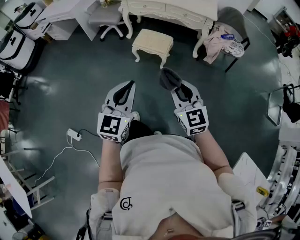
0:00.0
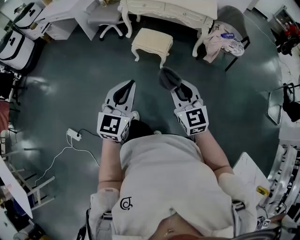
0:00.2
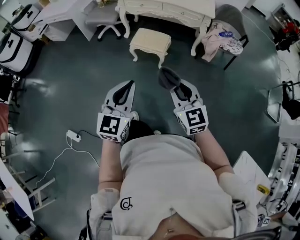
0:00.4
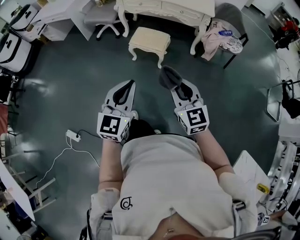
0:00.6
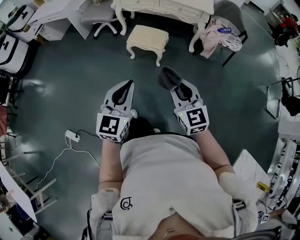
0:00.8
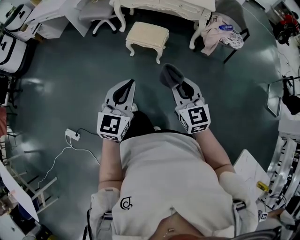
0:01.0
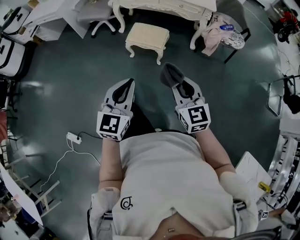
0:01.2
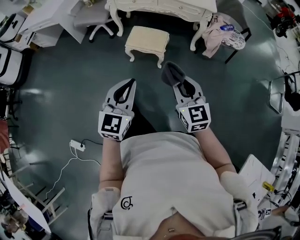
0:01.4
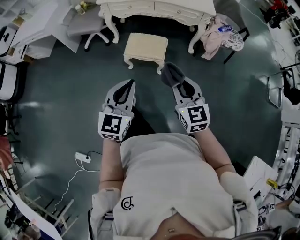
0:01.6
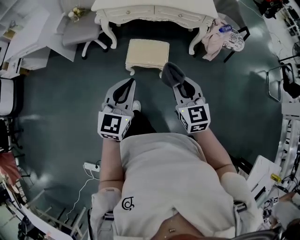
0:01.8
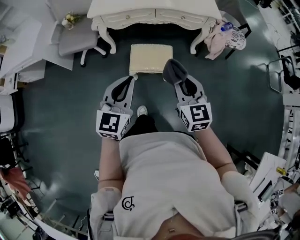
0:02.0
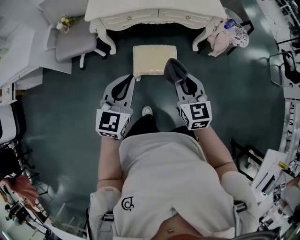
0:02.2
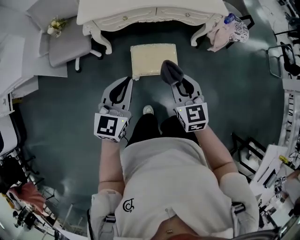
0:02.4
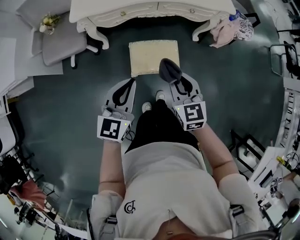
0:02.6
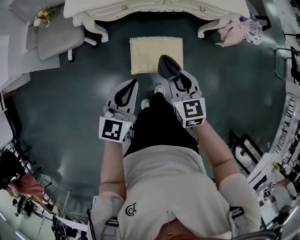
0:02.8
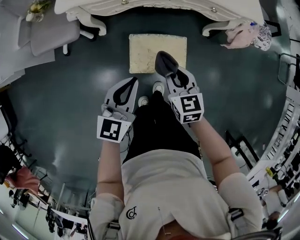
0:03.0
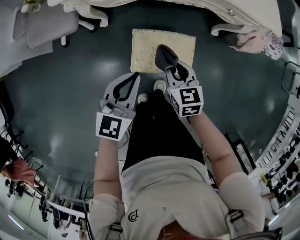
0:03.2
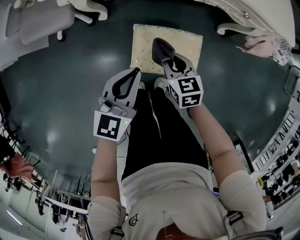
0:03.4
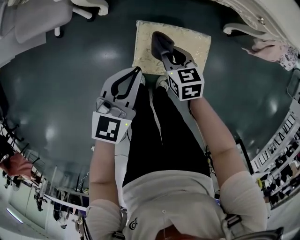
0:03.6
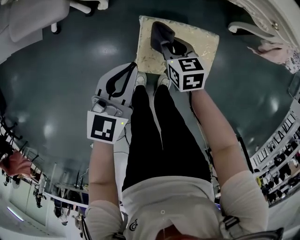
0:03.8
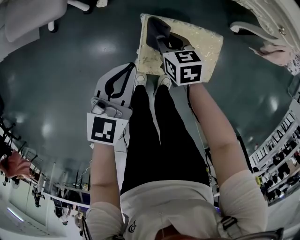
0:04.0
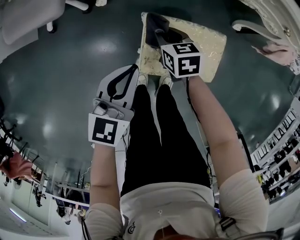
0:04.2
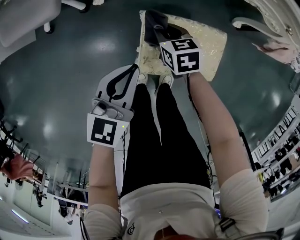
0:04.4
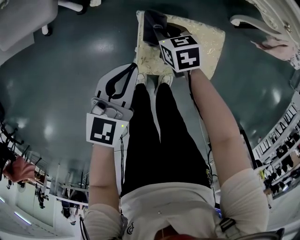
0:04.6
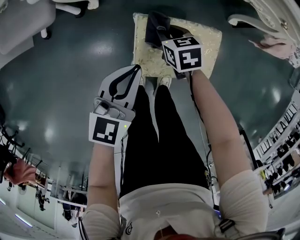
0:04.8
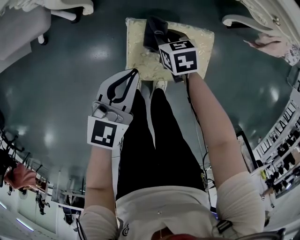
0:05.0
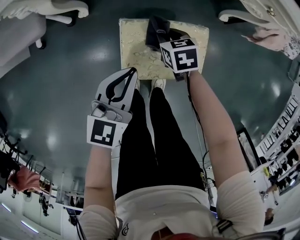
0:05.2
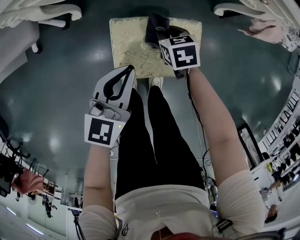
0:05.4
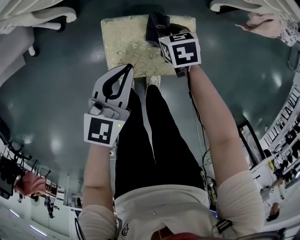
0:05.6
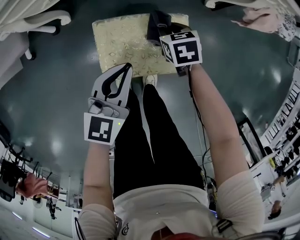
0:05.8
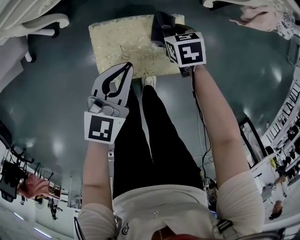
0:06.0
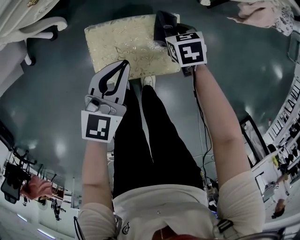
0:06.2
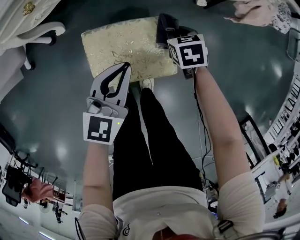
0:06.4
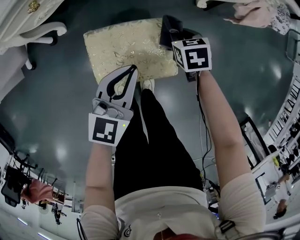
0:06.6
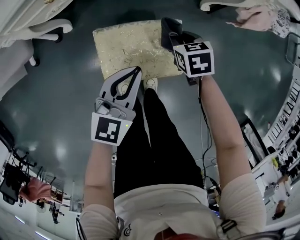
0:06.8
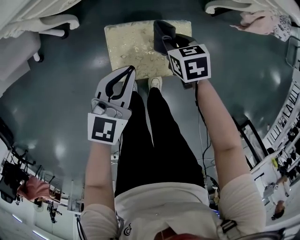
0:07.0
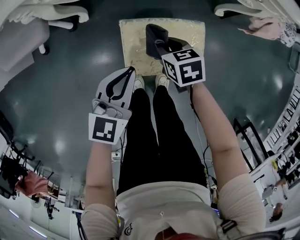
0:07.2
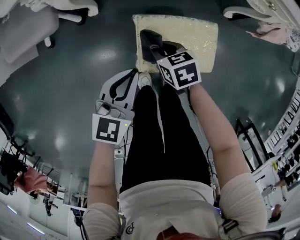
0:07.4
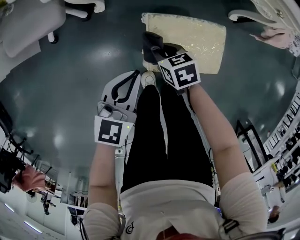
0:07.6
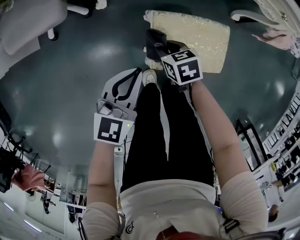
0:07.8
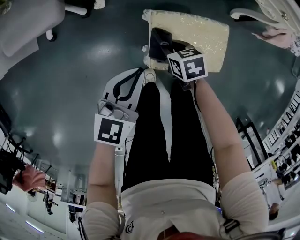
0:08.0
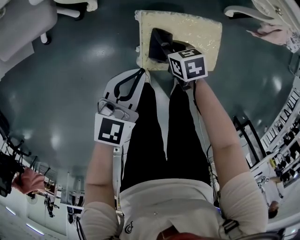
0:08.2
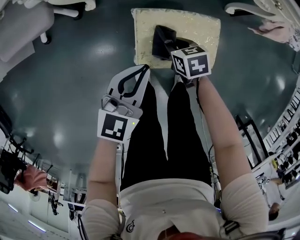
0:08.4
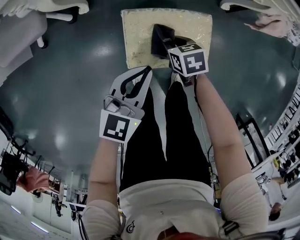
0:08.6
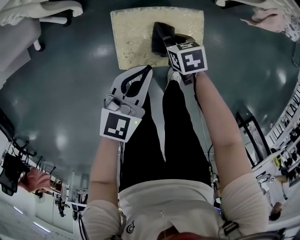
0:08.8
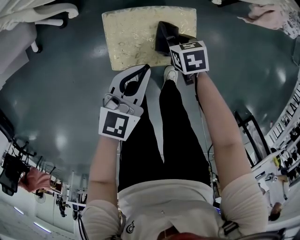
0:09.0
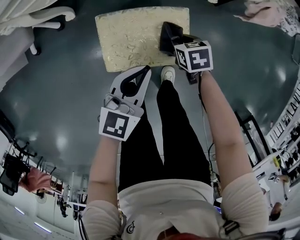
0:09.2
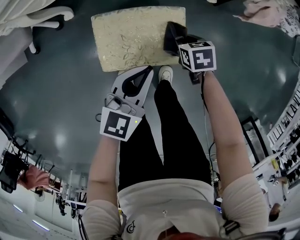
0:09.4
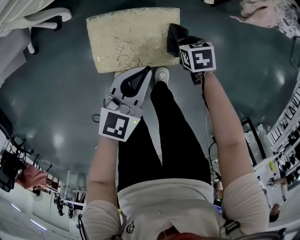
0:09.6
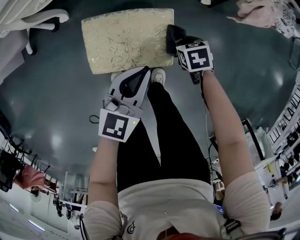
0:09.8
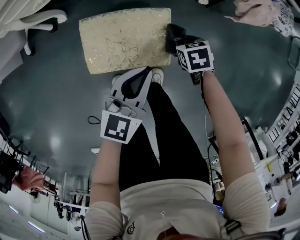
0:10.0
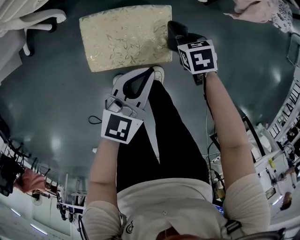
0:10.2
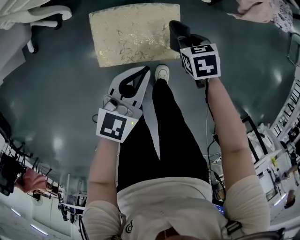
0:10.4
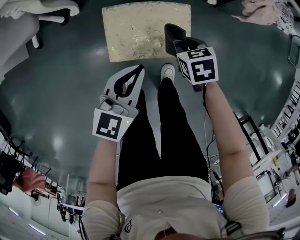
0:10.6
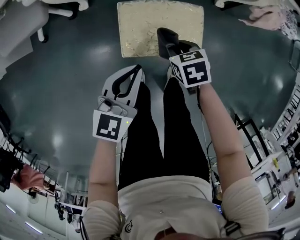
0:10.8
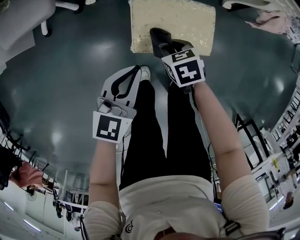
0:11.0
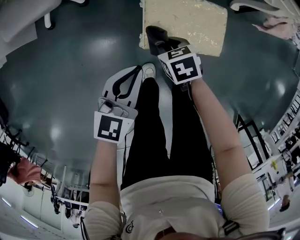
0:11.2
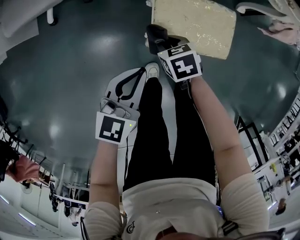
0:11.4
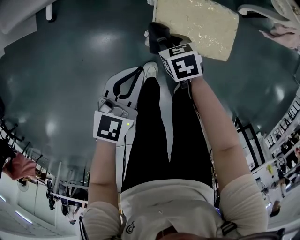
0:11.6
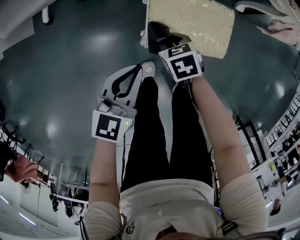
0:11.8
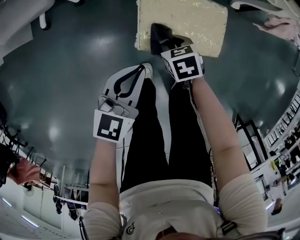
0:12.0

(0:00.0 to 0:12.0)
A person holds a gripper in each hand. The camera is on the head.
0:00.0 - 0:01.6: Both grippers move forward, approximately 20 cm.
0:01.6 - 0:03.0: The pair of grippers is taken forward and to the left, some 50 cm. The two grippers go roughly 20 cm downward. The right gripper changes its angle by about 30 degrees; the left gripper changes its angle by some 20 degrees.
0:03.0 - 0:04.4: The right gripper moves downward and forward, approximately 35 cm, and swivels approximately 20 degrees, while the left gripper moves downward, approximately 20 cm.
0:04.4 - 0:06.0: The two grippers go approximately 20 cm to the right.
0:06.0 - 0:07.6: Both grippers move to the left, some 20 cm.
0:07.6 - 0:09.0: The grippers both shift to the right by some 20 cm.
0:09.0 - 0:10.4: The right gripper ends up some 10 cm from where it was.
0:10.4 - 0:12.0: Both grippers travel together to the left, approximately 20 cm.

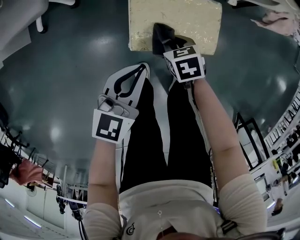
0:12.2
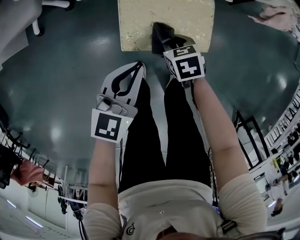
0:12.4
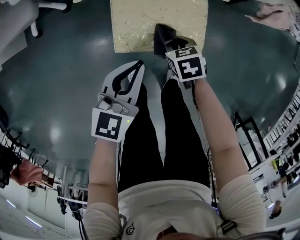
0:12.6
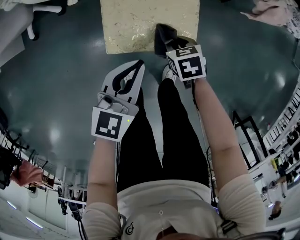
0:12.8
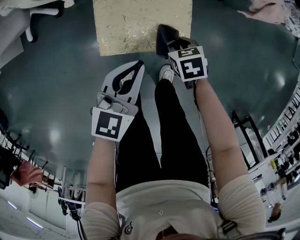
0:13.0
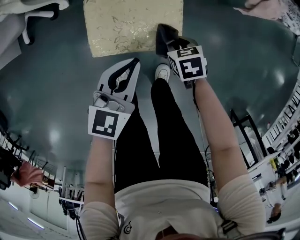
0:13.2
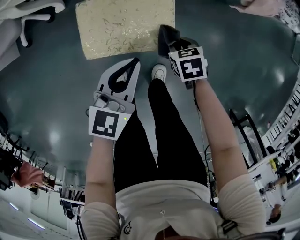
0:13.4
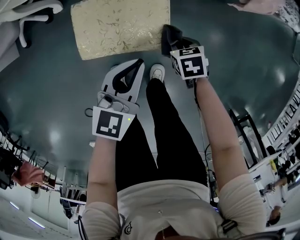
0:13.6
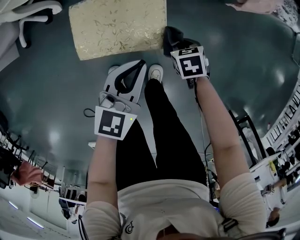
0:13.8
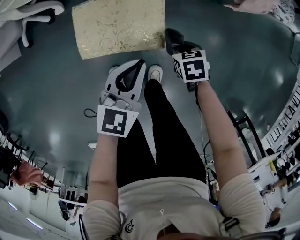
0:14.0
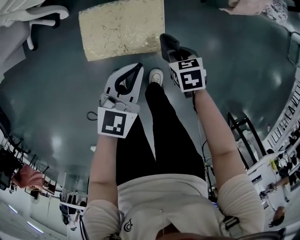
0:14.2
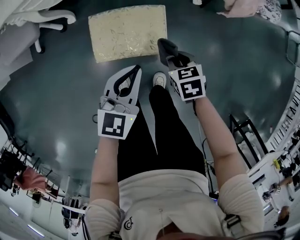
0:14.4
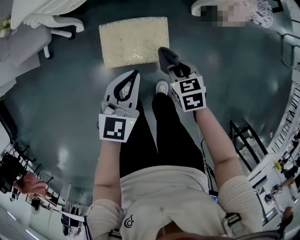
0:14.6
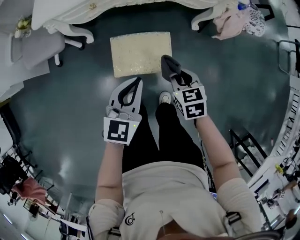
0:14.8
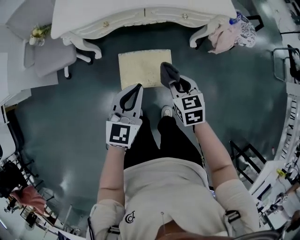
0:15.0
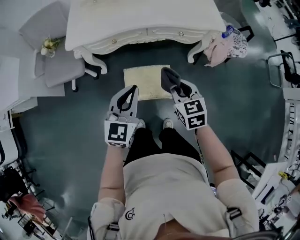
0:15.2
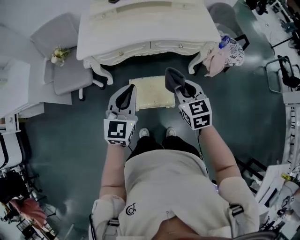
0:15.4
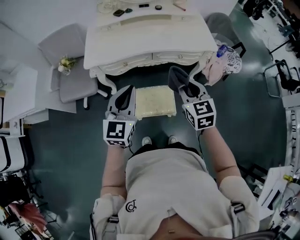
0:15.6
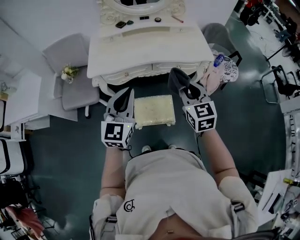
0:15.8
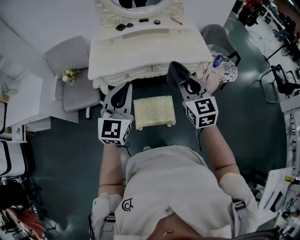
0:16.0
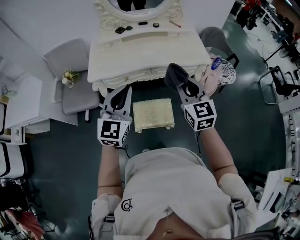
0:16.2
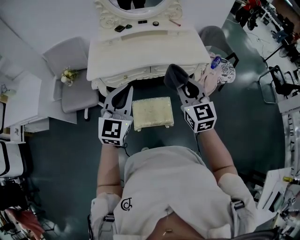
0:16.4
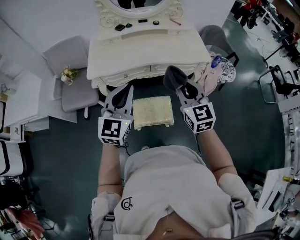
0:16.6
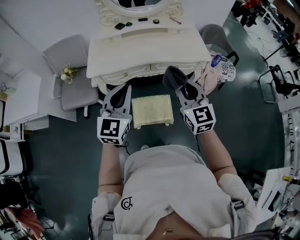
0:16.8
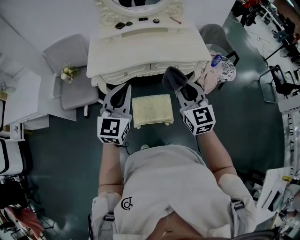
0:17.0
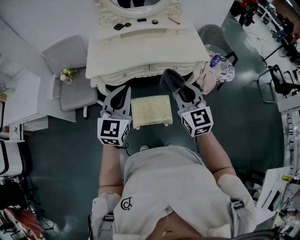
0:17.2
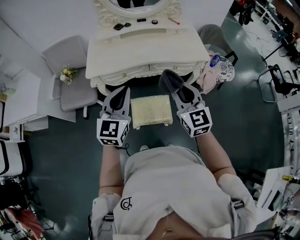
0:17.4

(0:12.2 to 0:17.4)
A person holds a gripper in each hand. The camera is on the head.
0:12.2 - 0:14.0: The left gripper ends up some 20 cm from where it was, while the right gripper changes place by roughly 25 cm.
0:14.0 - 0:15.6: Both grippers move upward, approximately 50 cm. The right gripper tilts its fingers some 50 degrees upward. The left gripper changes its angle by about 30 degrees.
0:15.6 - 0:17.4: The right gripper shifts approximately 10 cm upward. The left gripper goes approximately 5 cm upward.

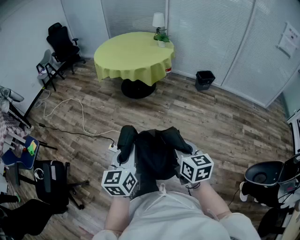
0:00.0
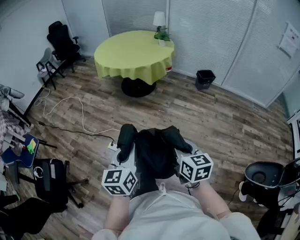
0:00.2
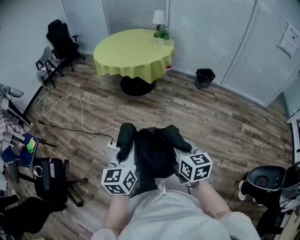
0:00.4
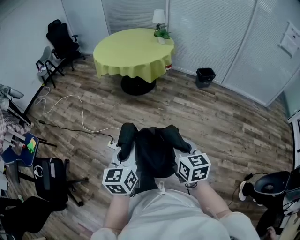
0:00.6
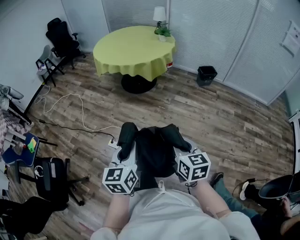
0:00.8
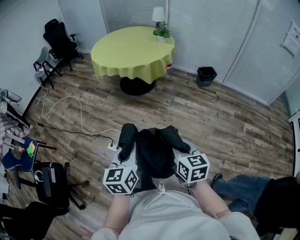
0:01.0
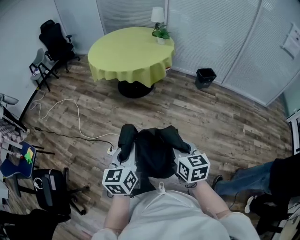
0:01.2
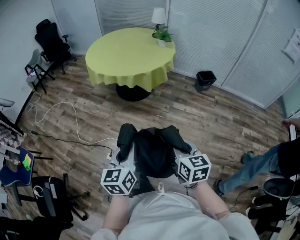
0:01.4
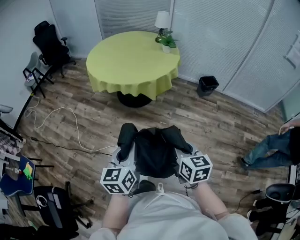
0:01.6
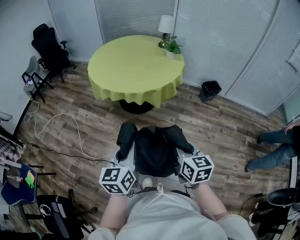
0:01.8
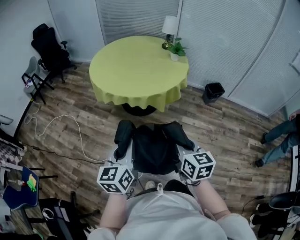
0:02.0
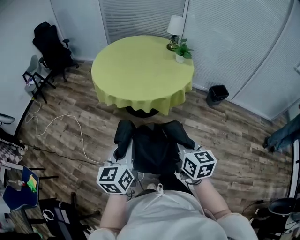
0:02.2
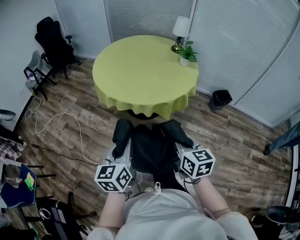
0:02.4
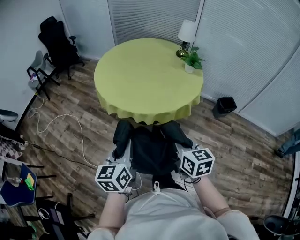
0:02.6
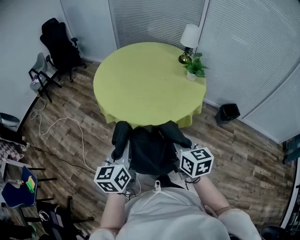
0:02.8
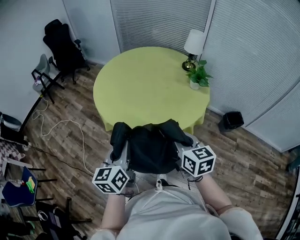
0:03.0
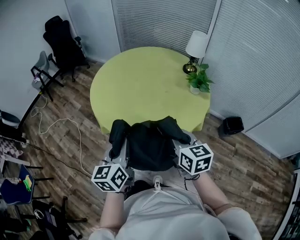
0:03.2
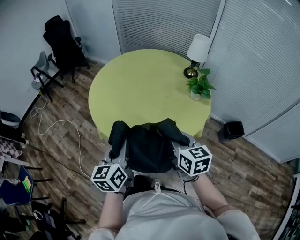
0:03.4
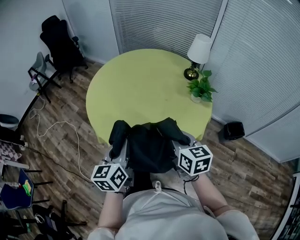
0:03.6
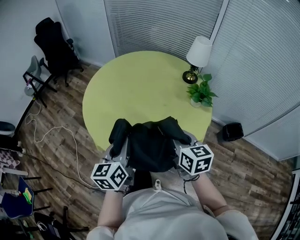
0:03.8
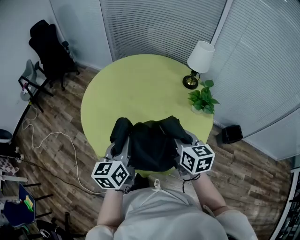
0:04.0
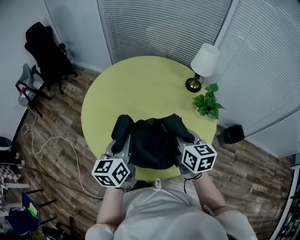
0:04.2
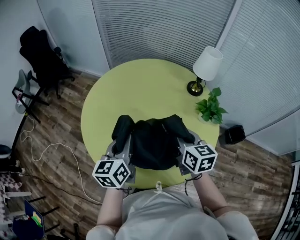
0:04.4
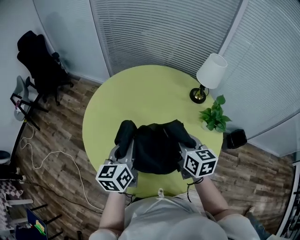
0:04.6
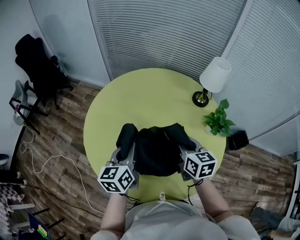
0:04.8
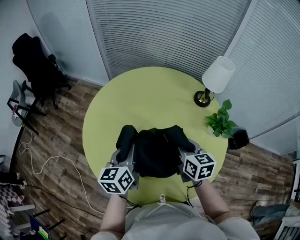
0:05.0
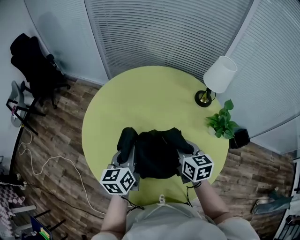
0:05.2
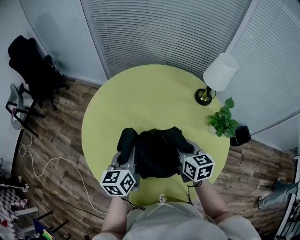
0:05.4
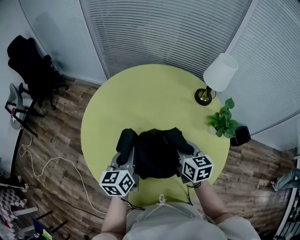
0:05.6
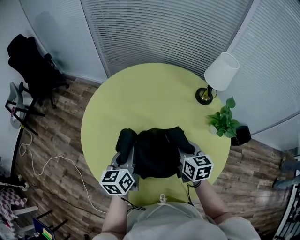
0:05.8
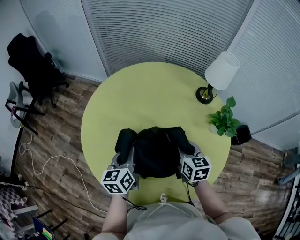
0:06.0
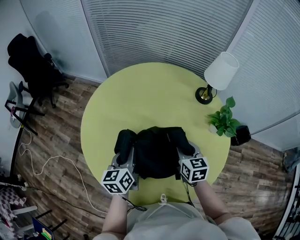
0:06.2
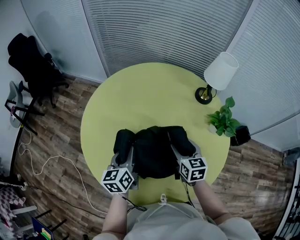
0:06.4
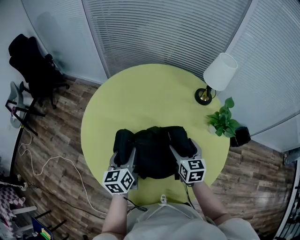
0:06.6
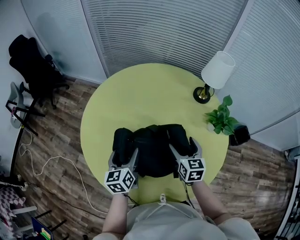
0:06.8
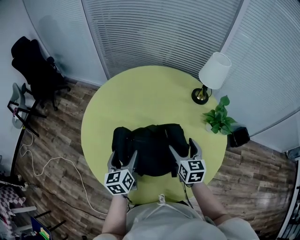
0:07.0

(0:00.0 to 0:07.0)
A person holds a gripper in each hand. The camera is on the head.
0:00.0 - 0:01.4: The two grippers go about 20 cm forward.
0:01.4 - 0:02.8: The pair of grippers is taken forward, about 50 cm.
0:02.8 - 0:04.2: The pair of grippers is taken forward, about 40 cm.
0:04.2 - 0:05.6: The two grippers go about 20 cm forward and downward.
0:05.6 - 0:07.0: The left gripper ends up approximately 5 cm from where it was, and opens up. Meanwhile the right gripper moves approximately 5 cm, and opens its fingers.
